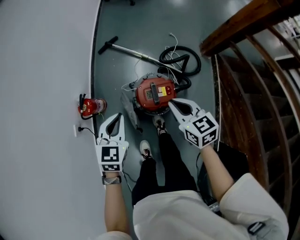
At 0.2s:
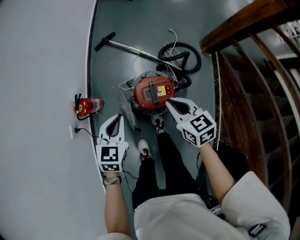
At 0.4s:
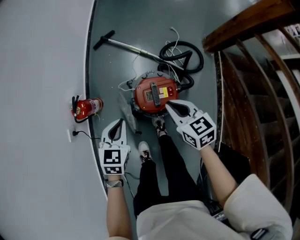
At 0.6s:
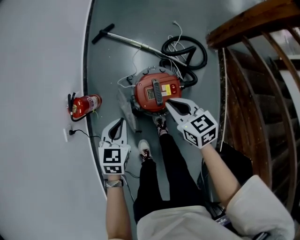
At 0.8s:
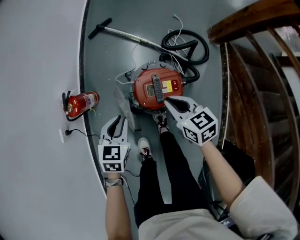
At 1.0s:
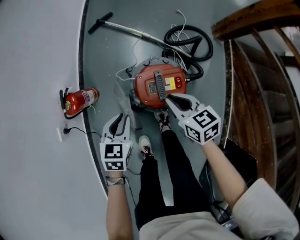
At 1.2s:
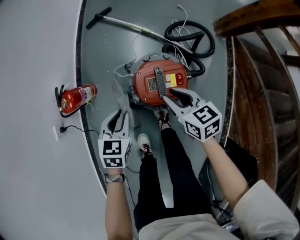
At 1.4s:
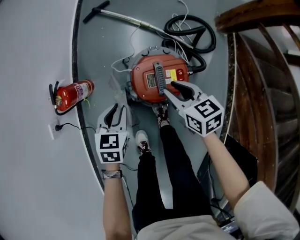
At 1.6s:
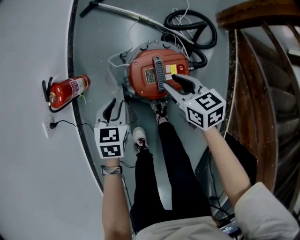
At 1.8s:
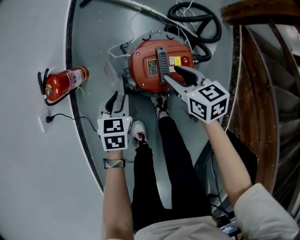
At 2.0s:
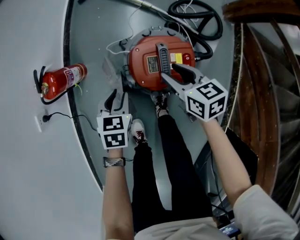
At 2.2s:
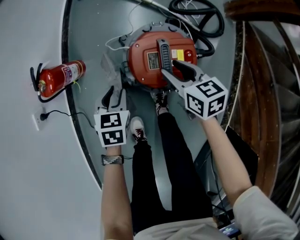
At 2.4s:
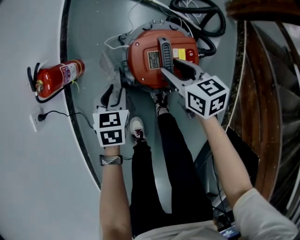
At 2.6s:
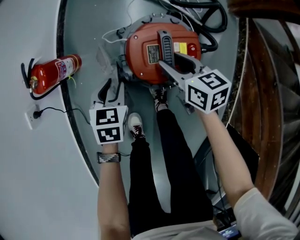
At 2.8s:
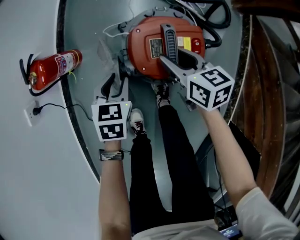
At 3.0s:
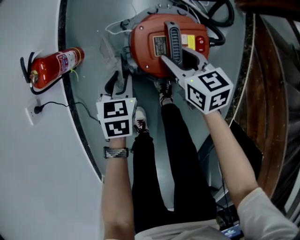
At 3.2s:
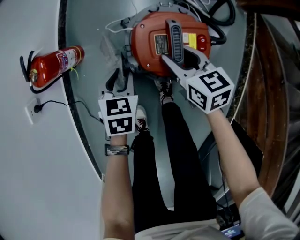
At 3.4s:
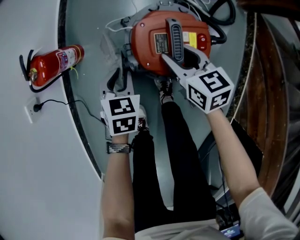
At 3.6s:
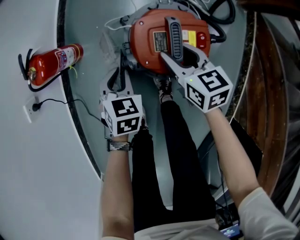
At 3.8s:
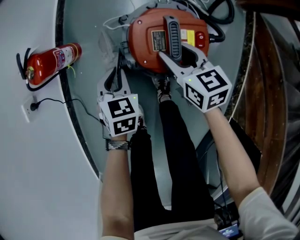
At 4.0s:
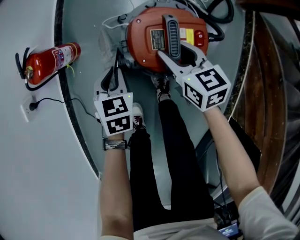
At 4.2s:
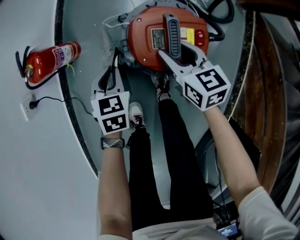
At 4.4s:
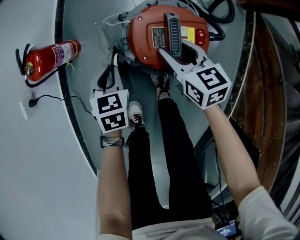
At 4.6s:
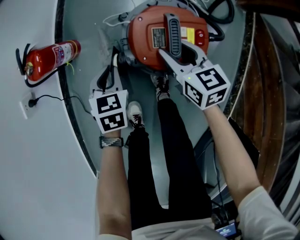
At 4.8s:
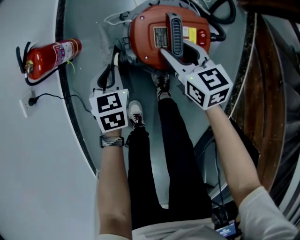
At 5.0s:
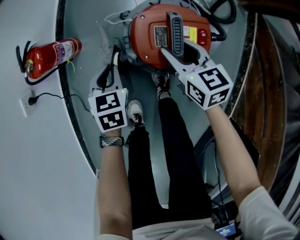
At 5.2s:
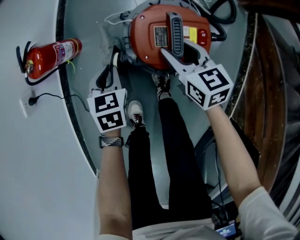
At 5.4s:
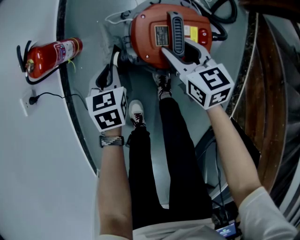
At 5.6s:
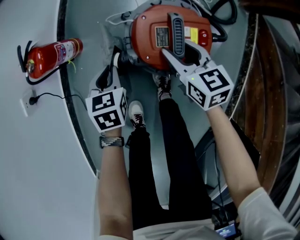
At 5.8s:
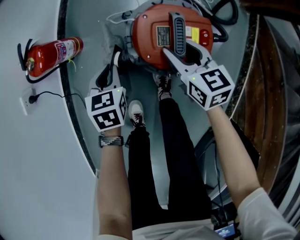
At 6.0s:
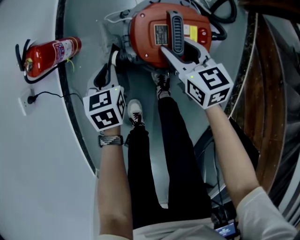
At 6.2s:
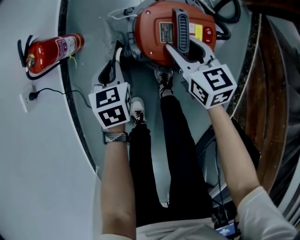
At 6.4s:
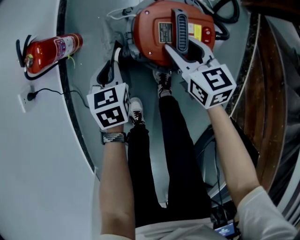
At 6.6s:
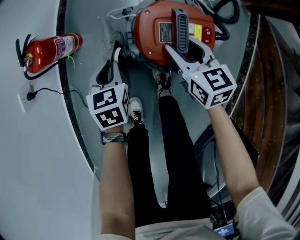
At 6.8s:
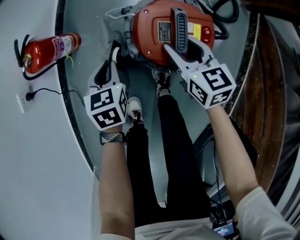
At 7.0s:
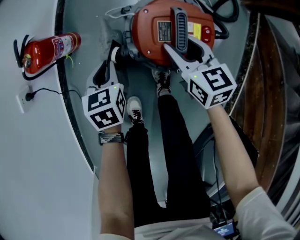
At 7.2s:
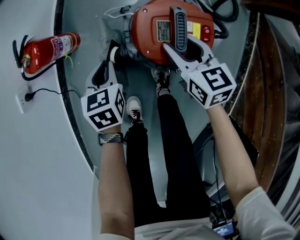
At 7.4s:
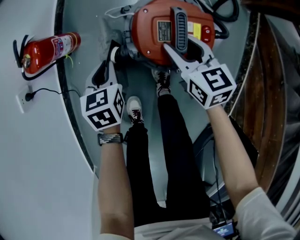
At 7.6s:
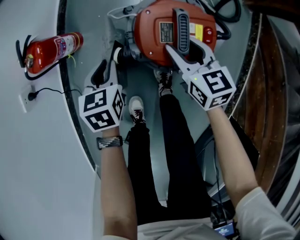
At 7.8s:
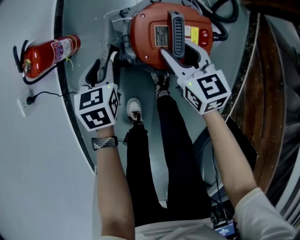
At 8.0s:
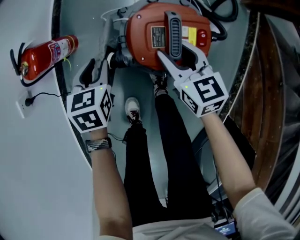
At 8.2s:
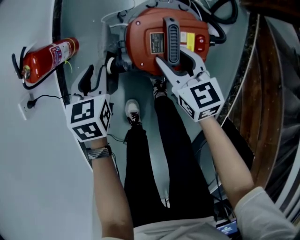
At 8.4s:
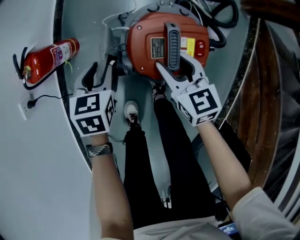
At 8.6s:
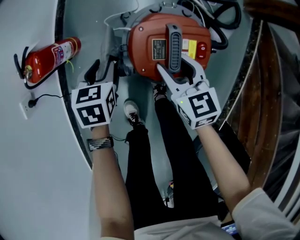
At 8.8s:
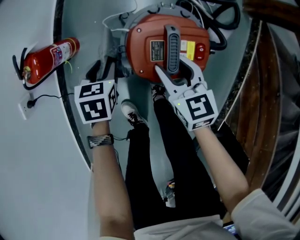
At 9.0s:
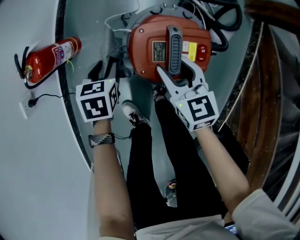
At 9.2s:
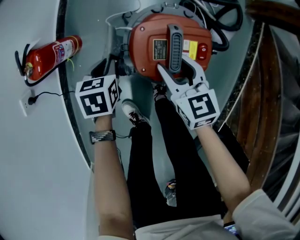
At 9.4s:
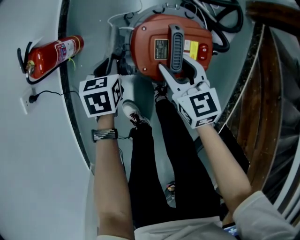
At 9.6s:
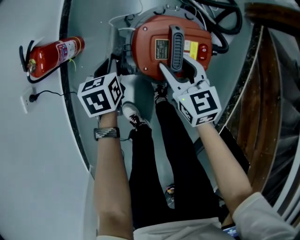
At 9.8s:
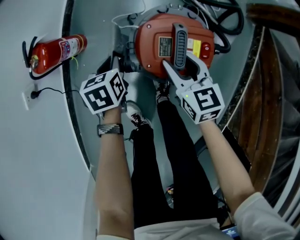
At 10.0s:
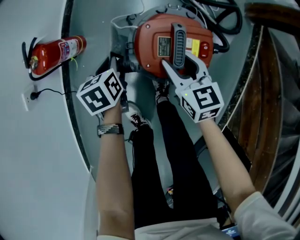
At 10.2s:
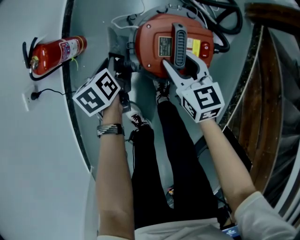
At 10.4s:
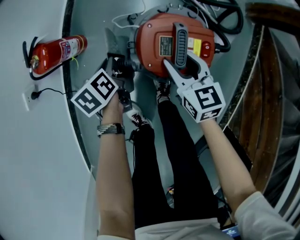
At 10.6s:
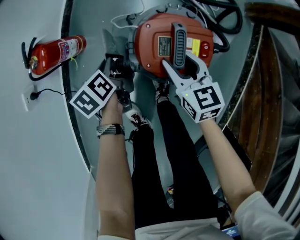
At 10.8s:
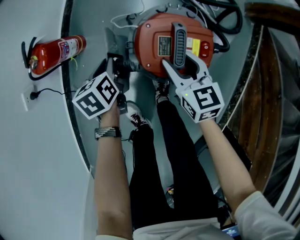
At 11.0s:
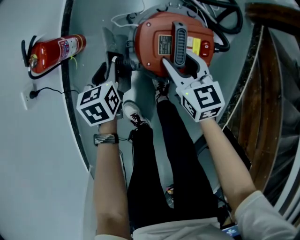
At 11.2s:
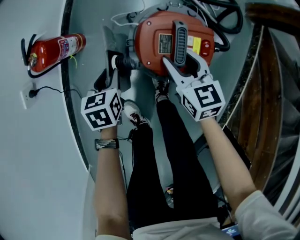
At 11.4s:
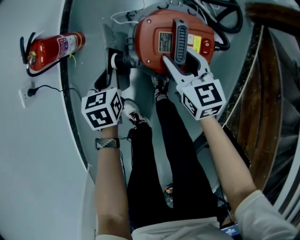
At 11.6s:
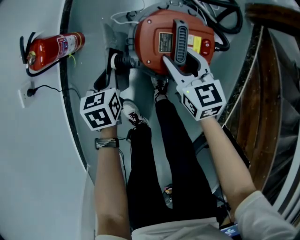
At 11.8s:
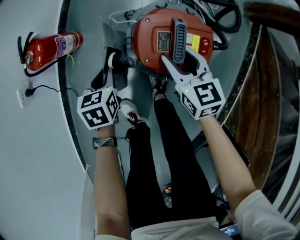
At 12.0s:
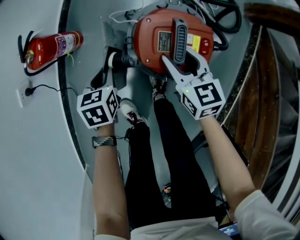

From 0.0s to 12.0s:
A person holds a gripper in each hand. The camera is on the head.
From 0.0s to 1.6s: The grippers both shift downward by about 30 cm. The right gripper opens up. The left gripper turns by roughly 20 degrees, and opens up.
From 1.6s to 3.0s: The two grippers go approximately 10 cm downward.
From 3.0s to 4.4s: The left gripper closes up.
From 4.4s to 6.0s: There are only small adjustments of the grippers.
From 6.0s to 7.6s: The two grippers keep their place.
From 7.6s to 9.0s: The left gripper opens up.
From 9.0s to 10.4s: The left gripper changes its angle by roughly 40 degrees, and closes up.
From 10.4s to 12.0s: The left gripper ends up roughly 5 cm from where it was, and rotates some 30 degrees.

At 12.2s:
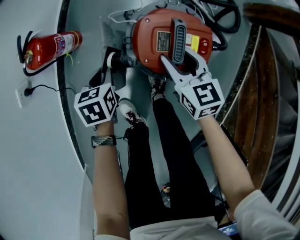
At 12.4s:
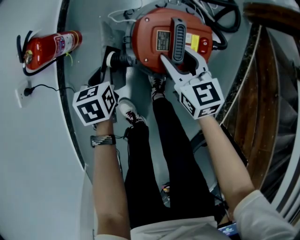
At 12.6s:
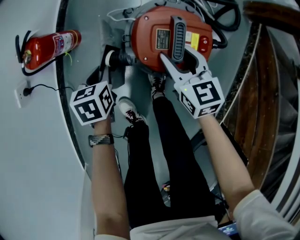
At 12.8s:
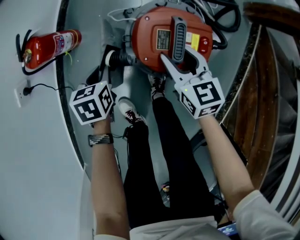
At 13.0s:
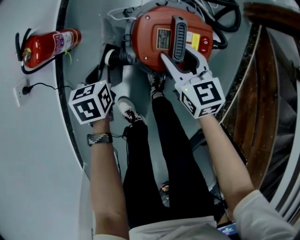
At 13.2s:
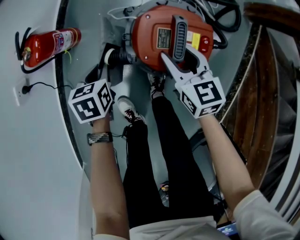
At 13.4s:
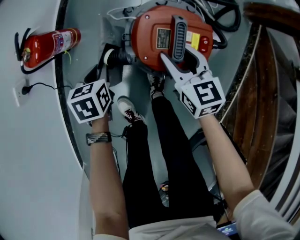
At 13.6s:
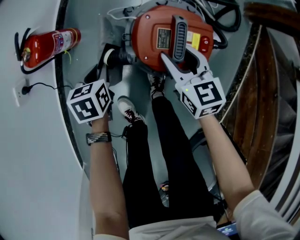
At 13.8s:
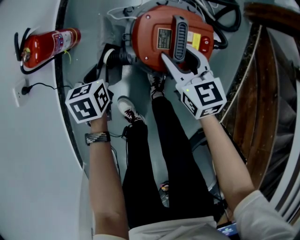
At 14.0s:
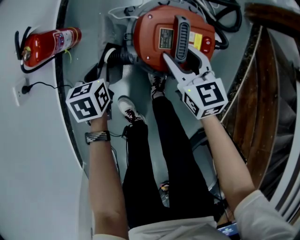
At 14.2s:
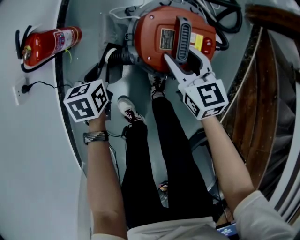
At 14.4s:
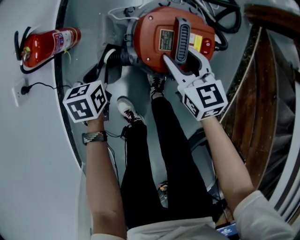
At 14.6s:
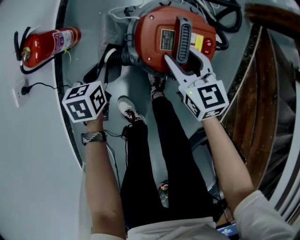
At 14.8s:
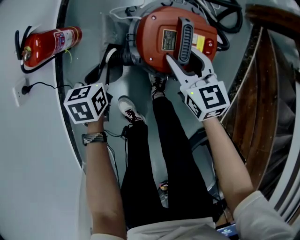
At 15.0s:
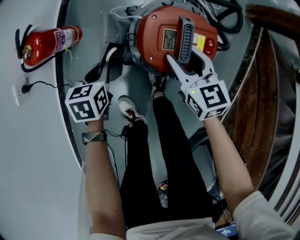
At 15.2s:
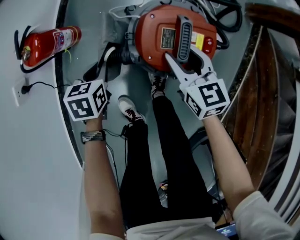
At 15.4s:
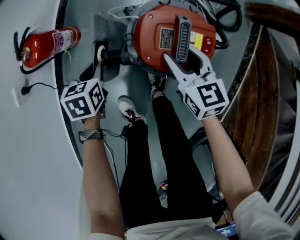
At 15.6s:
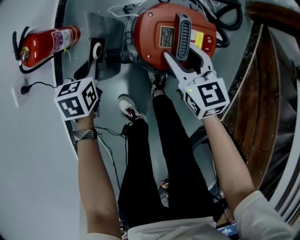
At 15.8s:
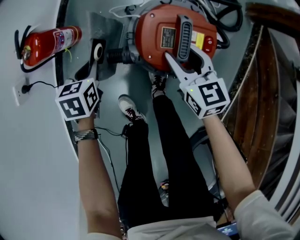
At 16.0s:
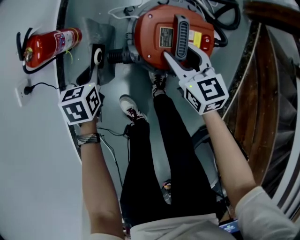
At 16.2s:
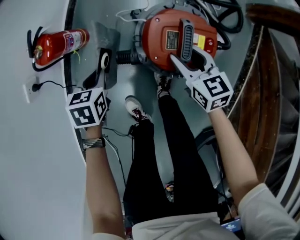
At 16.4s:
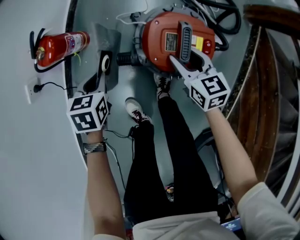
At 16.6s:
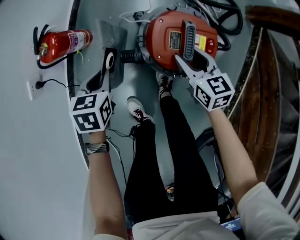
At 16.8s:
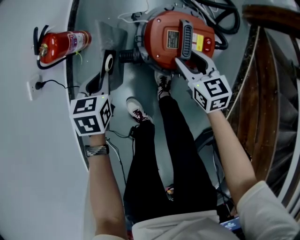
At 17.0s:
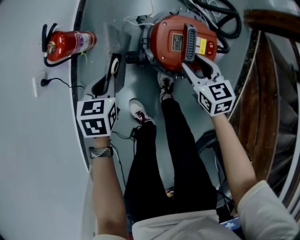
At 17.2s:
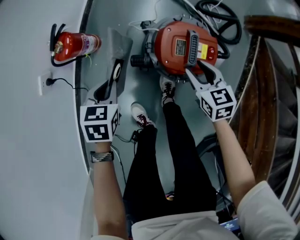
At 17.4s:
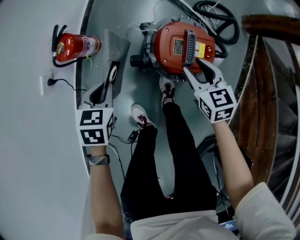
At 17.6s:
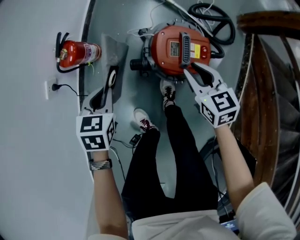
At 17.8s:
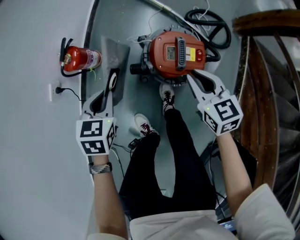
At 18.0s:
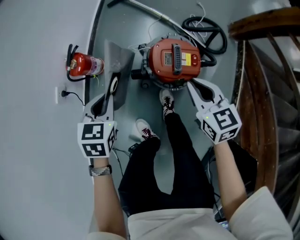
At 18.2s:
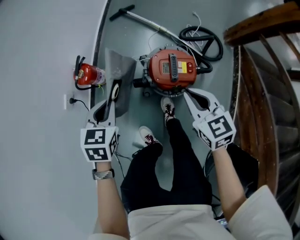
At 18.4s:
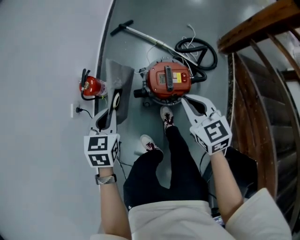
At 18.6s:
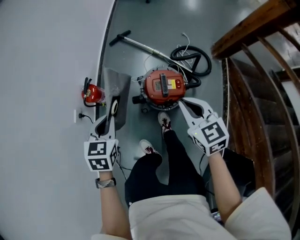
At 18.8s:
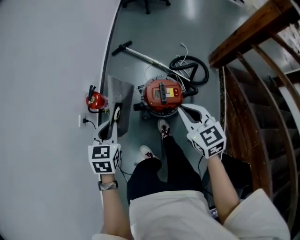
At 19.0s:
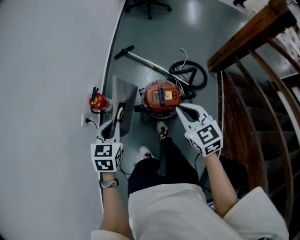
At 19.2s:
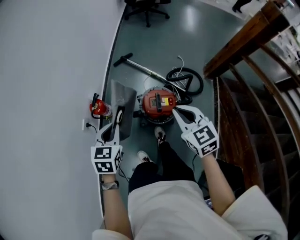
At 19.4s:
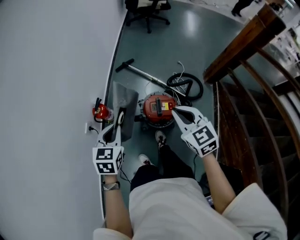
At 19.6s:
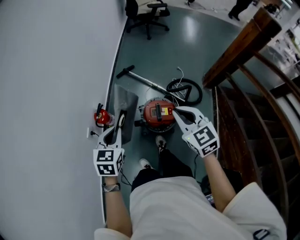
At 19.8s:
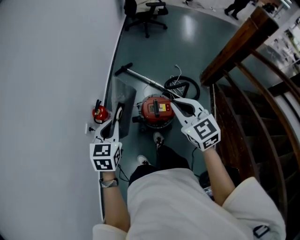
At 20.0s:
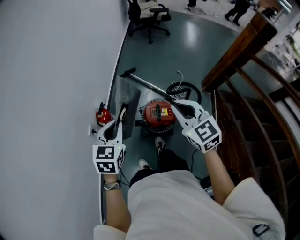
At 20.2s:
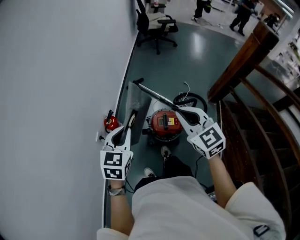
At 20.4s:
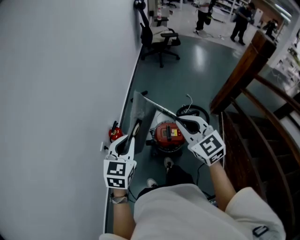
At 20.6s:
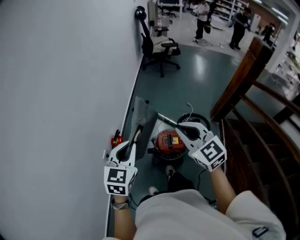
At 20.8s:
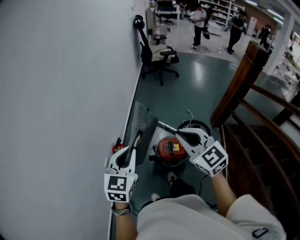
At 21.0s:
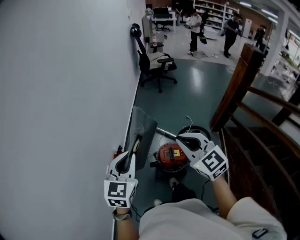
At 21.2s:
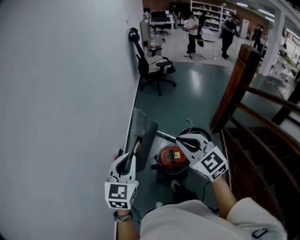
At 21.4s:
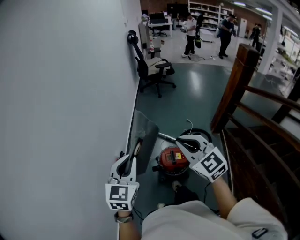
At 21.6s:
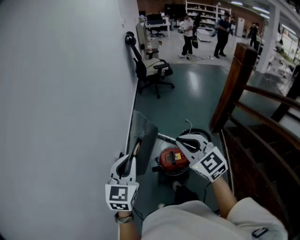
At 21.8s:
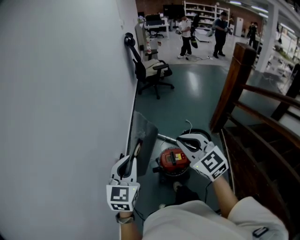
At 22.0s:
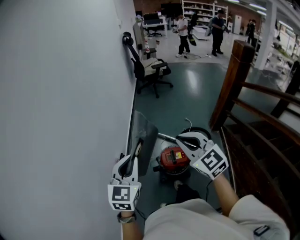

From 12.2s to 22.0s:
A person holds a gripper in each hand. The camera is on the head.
From 12.2s to 13.6s: Both grippers stay about where they are.
From 13.6s to 15.0s: The grippers make only small movements.
From 15.0s to 16.4s: The left gripper heads upward, covering roughly 5 cm.
From 16.4s to 17.8s: The grippers both shift upward by roughly 15 cm. The right gripper closes its fingers.
From 17.8s to 19.2s: Both grippers move upward, roughly 30 cm.
From 19.2s to 20.6s: The grippers both shift upward by approximately 20 cm. The left gripper changes its angle by some 20 degrees, while the right gripper changes its angle by roughly 20 degrees.
From 20.6s to 22.0s: The left gripper heads upward, covering about 5 cm.

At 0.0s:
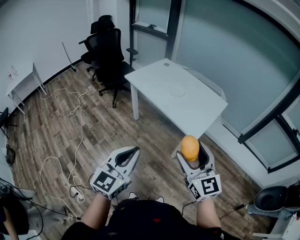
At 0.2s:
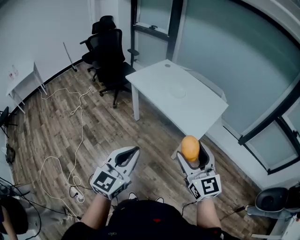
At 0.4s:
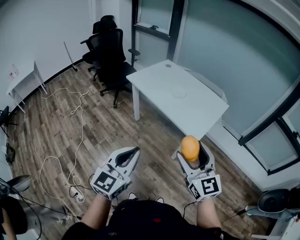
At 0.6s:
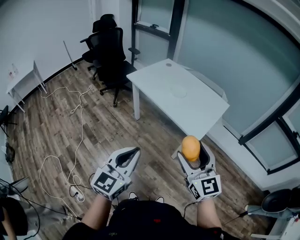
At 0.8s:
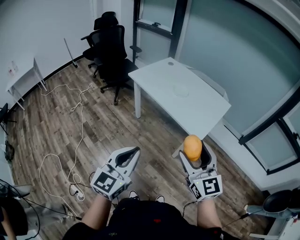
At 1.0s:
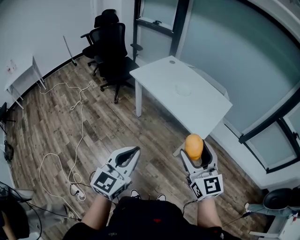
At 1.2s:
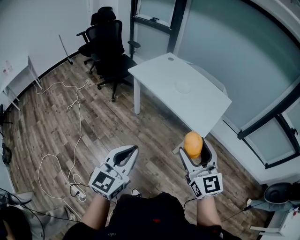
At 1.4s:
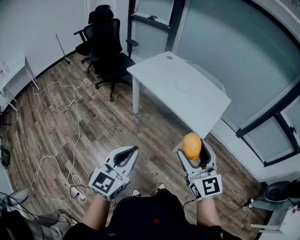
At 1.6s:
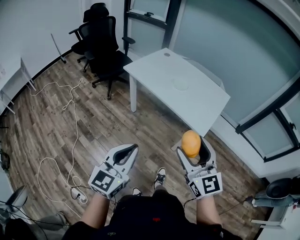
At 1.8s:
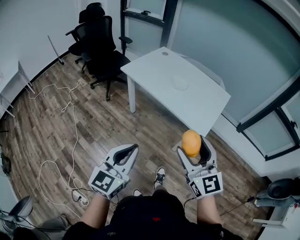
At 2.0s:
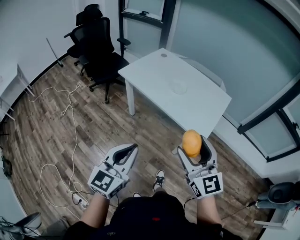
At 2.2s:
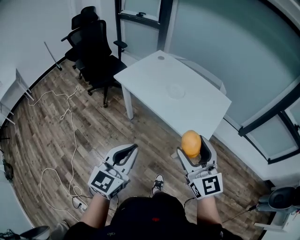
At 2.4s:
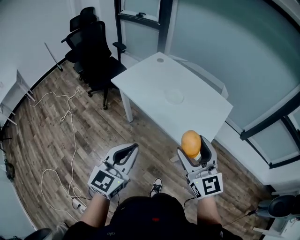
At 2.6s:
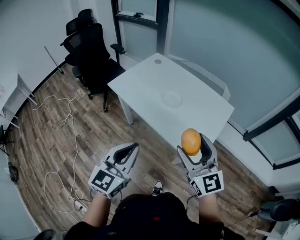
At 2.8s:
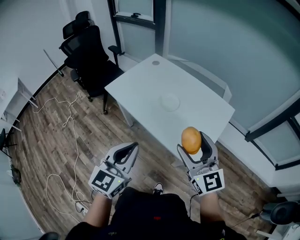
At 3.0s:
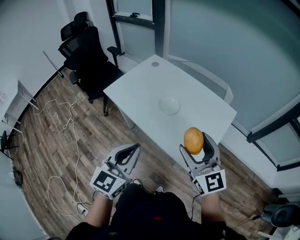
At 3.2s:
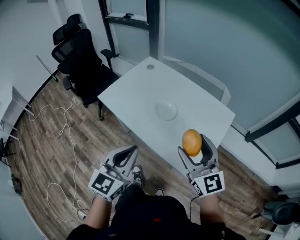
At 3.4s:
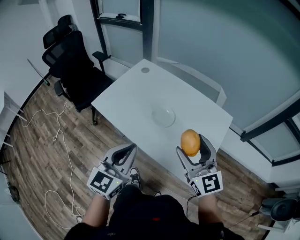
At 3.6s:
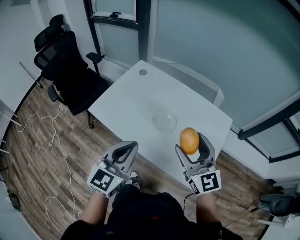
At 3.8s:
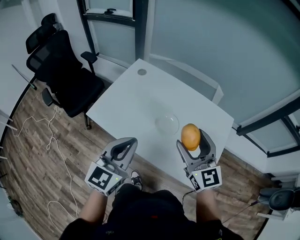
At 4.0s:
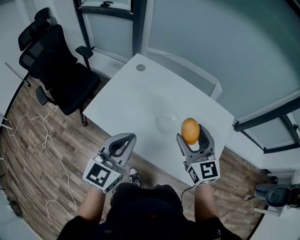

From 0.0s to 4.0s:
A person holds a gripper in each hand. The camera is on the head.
From 0.0s to 1.4s: The grippers both shift to the left by roughly 10 cm.
From 1.4s to 2.6s: The two grippers go about 30 cm forward and to the right.
From 2.6s to 4.0s: The grippers both shift forward by some 35 cm.
